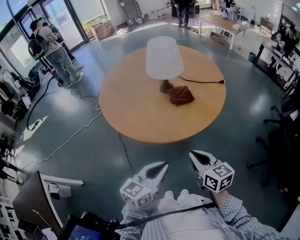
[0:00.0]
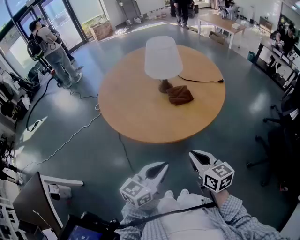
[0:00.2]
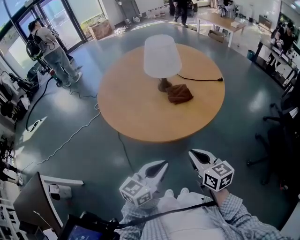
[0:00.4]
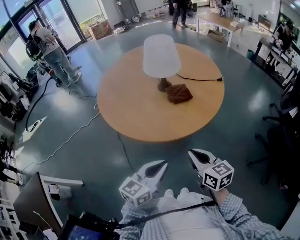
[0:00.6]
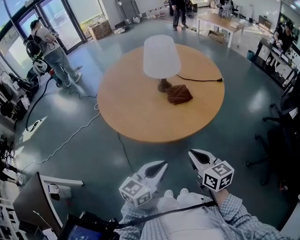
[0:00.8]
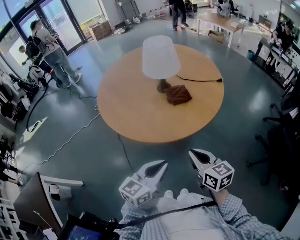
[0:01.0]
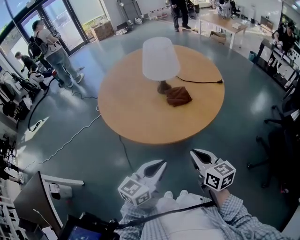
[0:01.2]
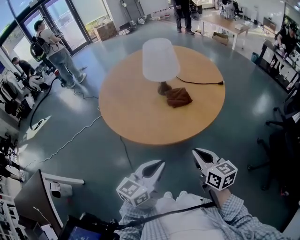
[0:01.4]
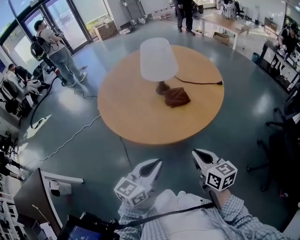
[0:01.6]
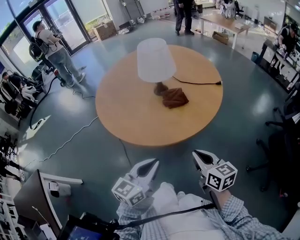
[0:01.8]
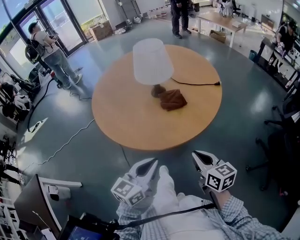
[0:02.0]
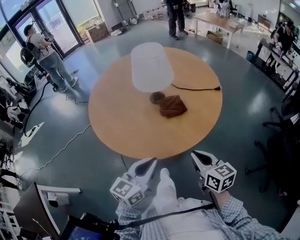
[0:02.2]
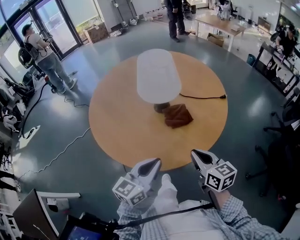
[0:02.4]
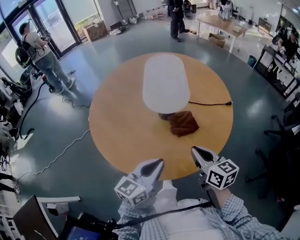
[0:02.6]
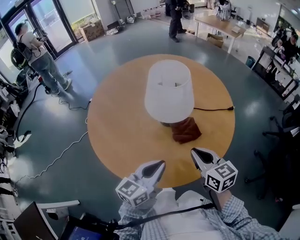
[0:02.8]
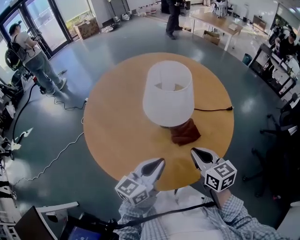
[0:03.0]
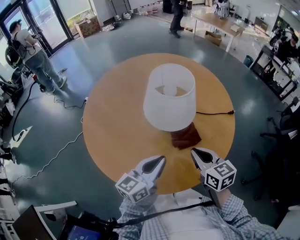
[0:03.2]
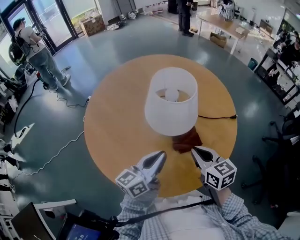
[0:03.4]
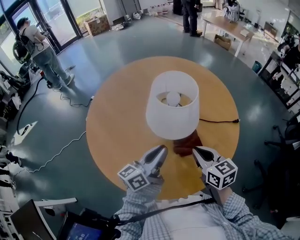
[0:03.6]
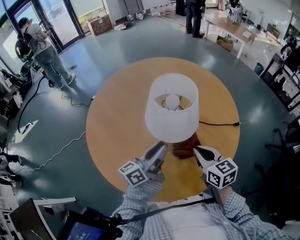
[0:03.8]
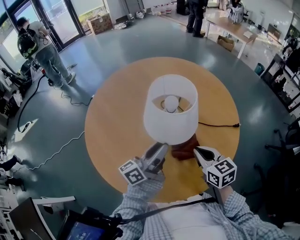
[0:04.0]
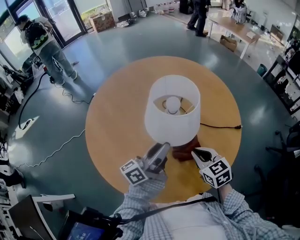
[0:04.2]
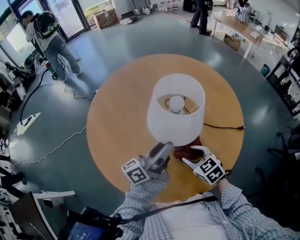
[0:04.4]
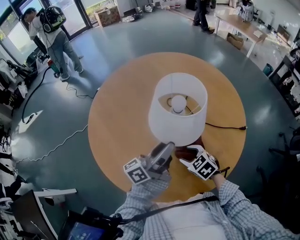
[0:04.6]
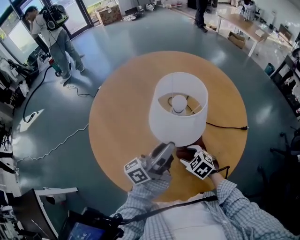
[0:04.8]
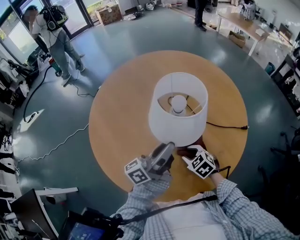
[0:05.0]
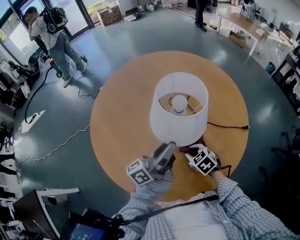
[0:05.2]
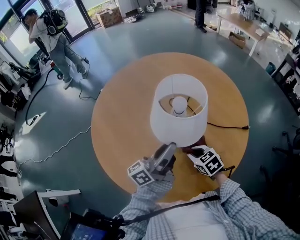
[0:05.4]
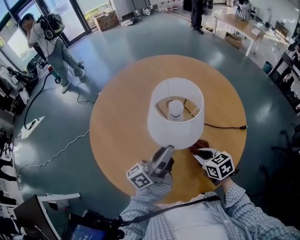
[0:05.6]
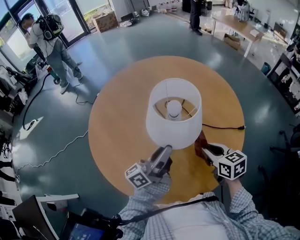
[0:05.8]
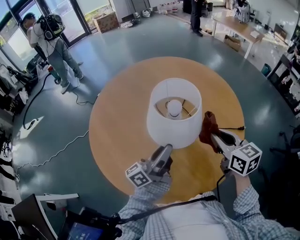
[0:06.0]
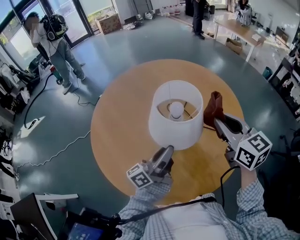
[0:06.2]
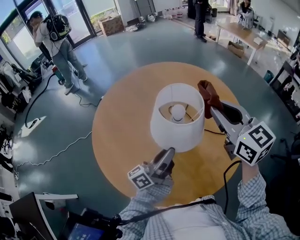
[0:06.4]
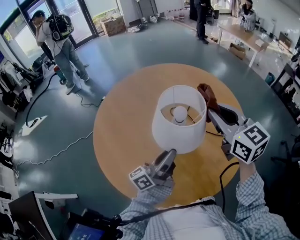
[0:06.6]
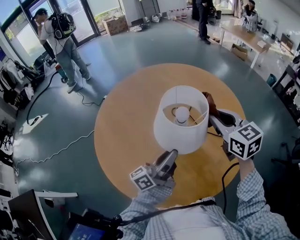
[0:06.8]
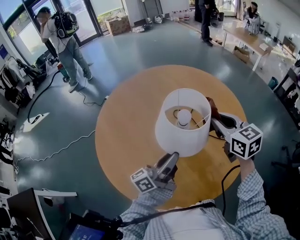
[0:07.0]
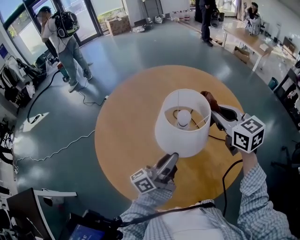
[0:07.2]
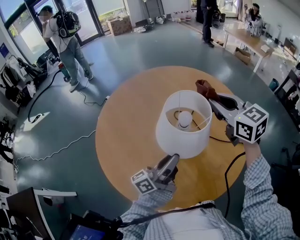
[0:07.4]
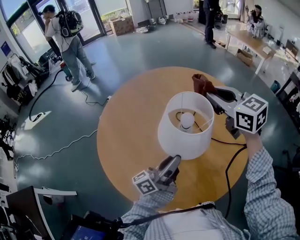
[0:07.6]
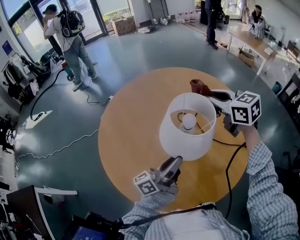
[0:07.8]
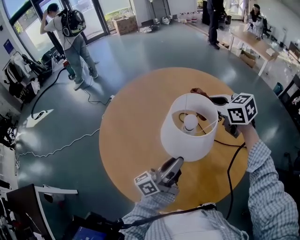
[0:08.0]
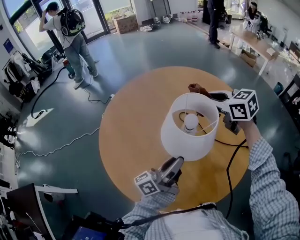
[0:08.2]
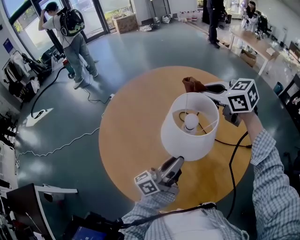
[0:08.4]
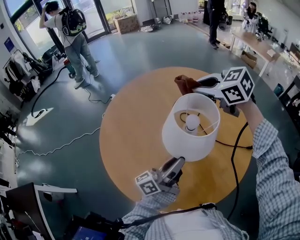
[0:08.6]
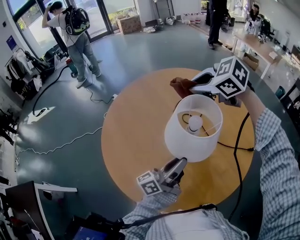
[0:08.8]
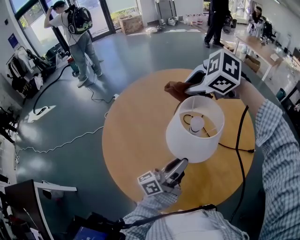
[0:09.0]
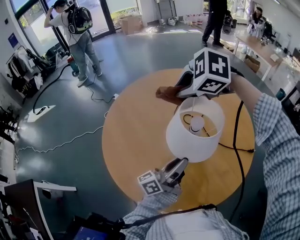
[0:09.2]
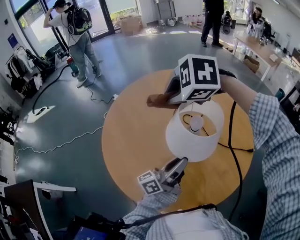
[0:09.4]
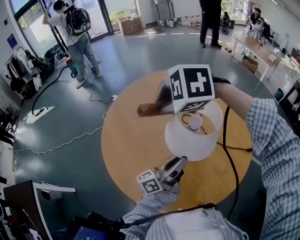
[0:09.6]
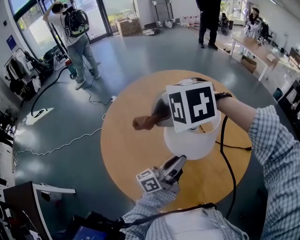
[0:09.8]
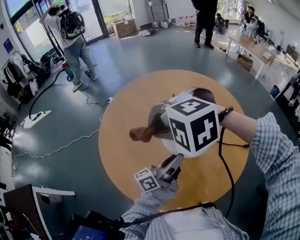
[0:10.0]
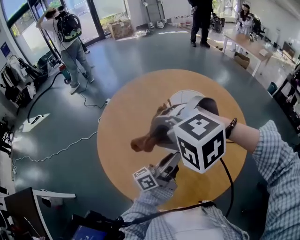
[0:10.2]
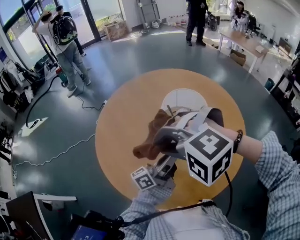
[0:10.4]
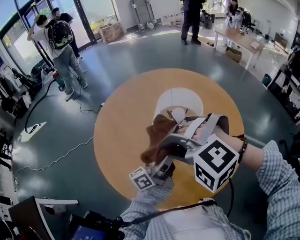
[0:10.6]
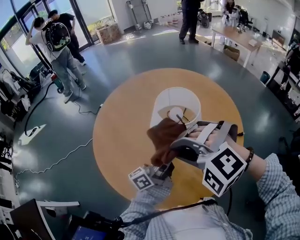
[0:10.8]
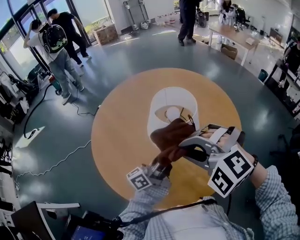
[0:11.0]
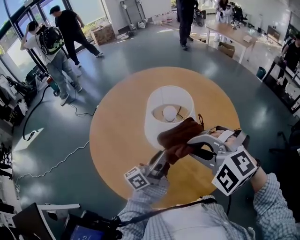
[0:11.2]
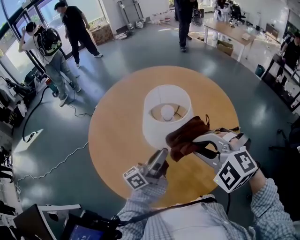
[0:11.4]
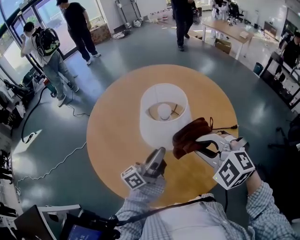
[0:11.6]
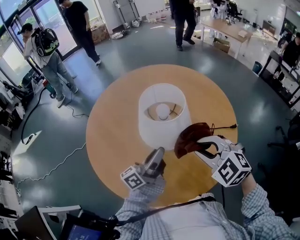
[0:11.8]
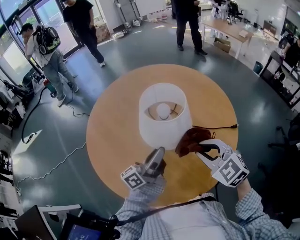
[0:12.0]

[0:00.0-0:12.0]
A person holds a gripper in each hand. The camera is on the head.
0:00.0 to 0:01.6: The right gripper travels to the right by some 5 cm.
0:01.6 to 0:03.0: Both grippers travel together forward, about 20 cm.
0:03.0 to 0:04.4: The right gripper is displaced downward and forward by roughly 10 cm, changes its angle by about 40 degrees, and opens up. The left gripper moves forward, some 15 cm, changes its angle by approximately 40 degrees, and opens up.
0:04.4 to 0:06.0: The right gripper goes about 20 cm upward and to the right, turns by some 30 degrees, and closes its fingers.
0:06.0 to 0:07.6: The right gripper moves up and down over approximately 15 cm, changing direction 2 times, and swivels some 30 degrees.
0:07.6 to 0:09.0: The right gripper shifts approximately 10 cm to the left, and tilts its fingers some 40 degrees downward.
0:09.0 to 0:10.4: The right gripper is displaced backward and to the left by roughly 25 cm, and twists approximately 40 degrees counterclockwise, seen from behind.
0:10.4 to 0:12.0: The right gripper goes approximately 20 cm to the right and downward, and rolls clockwise, seen from behind, by roughly 60 degrees.

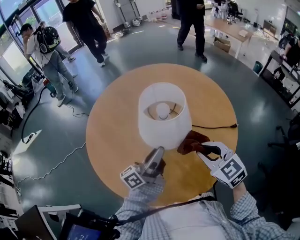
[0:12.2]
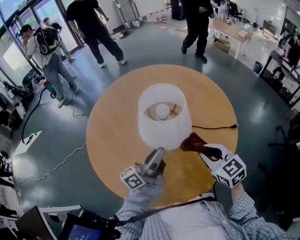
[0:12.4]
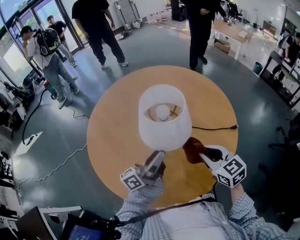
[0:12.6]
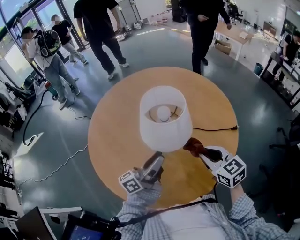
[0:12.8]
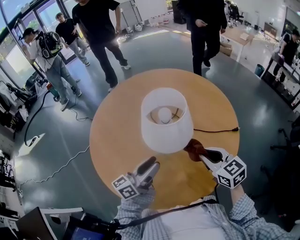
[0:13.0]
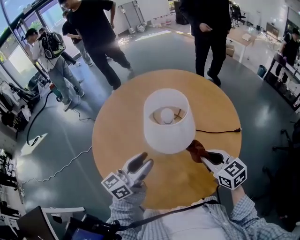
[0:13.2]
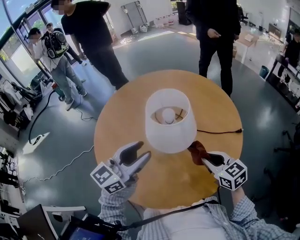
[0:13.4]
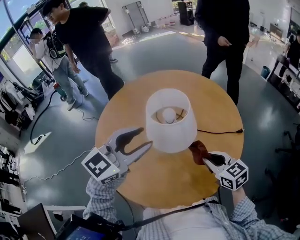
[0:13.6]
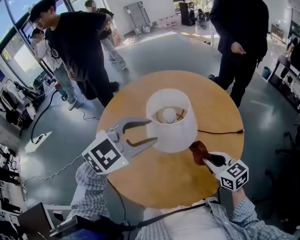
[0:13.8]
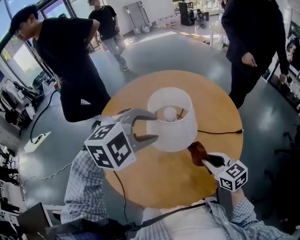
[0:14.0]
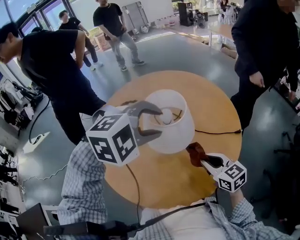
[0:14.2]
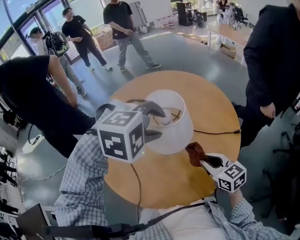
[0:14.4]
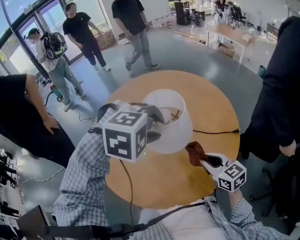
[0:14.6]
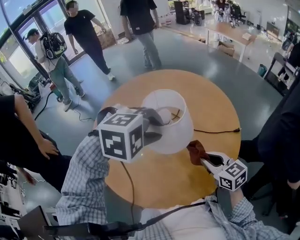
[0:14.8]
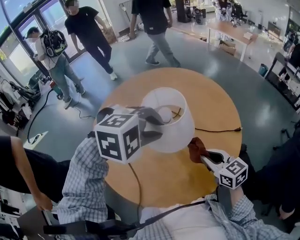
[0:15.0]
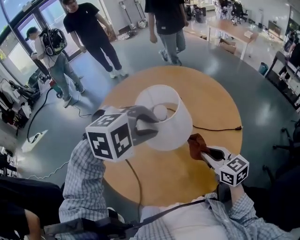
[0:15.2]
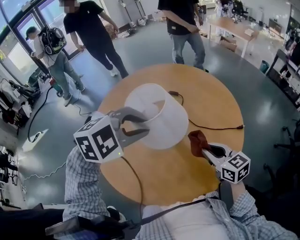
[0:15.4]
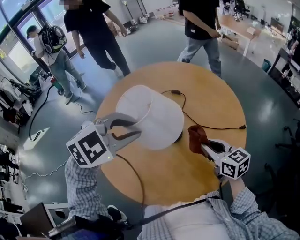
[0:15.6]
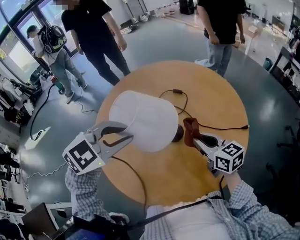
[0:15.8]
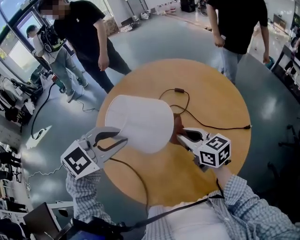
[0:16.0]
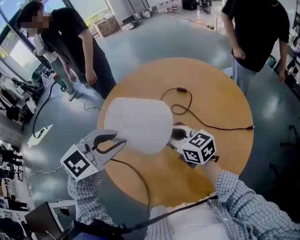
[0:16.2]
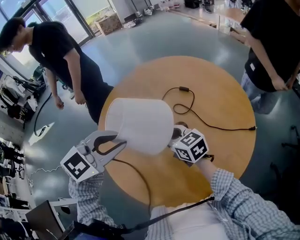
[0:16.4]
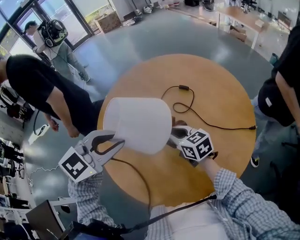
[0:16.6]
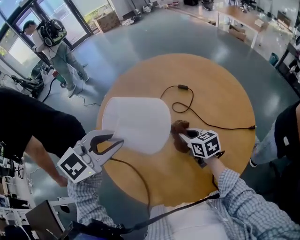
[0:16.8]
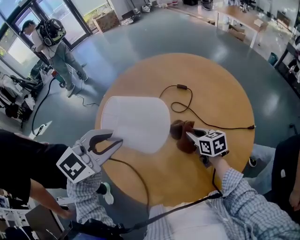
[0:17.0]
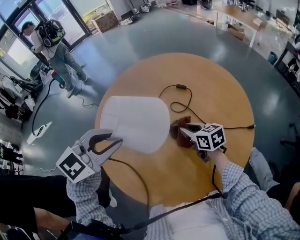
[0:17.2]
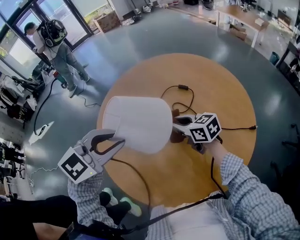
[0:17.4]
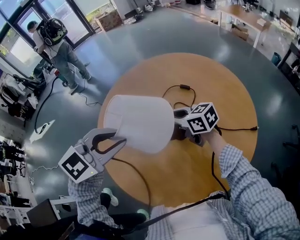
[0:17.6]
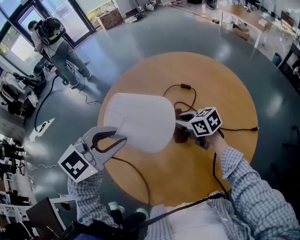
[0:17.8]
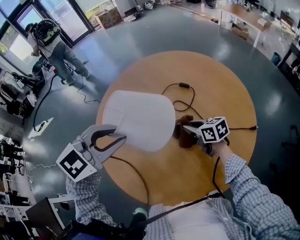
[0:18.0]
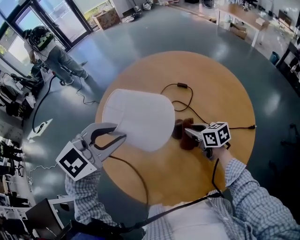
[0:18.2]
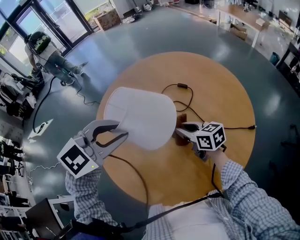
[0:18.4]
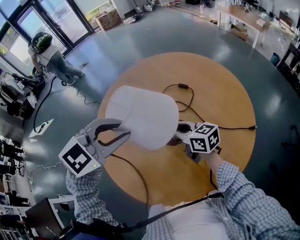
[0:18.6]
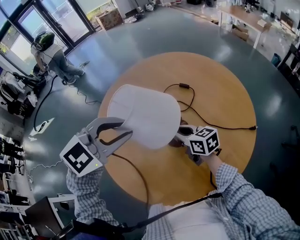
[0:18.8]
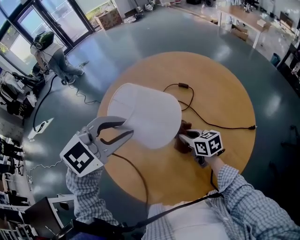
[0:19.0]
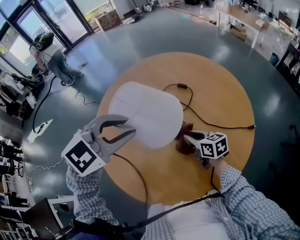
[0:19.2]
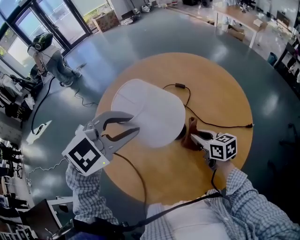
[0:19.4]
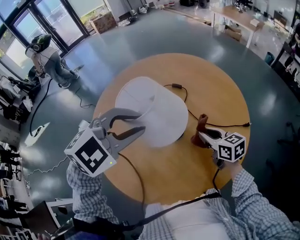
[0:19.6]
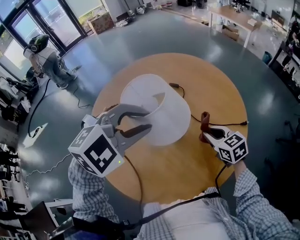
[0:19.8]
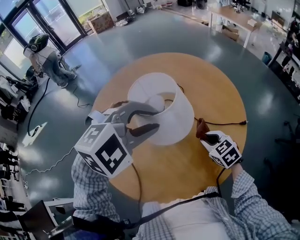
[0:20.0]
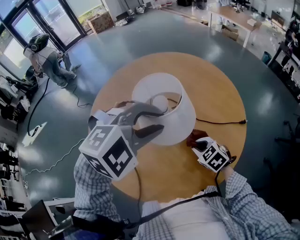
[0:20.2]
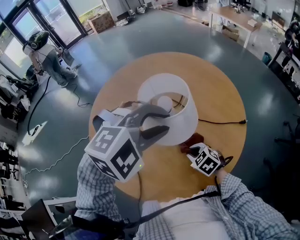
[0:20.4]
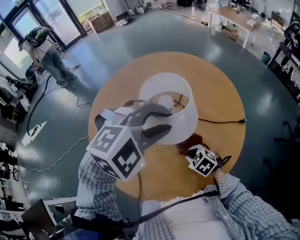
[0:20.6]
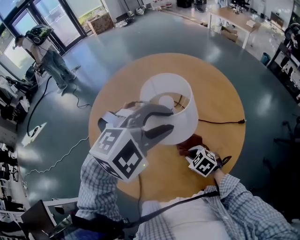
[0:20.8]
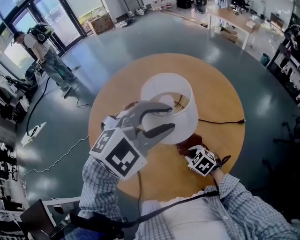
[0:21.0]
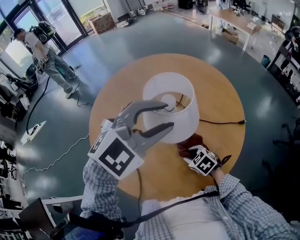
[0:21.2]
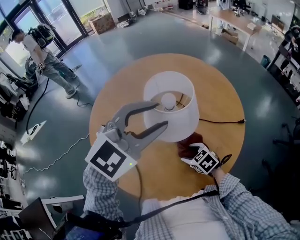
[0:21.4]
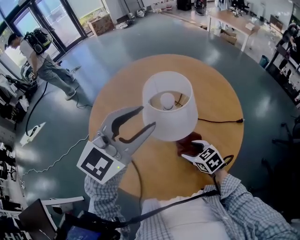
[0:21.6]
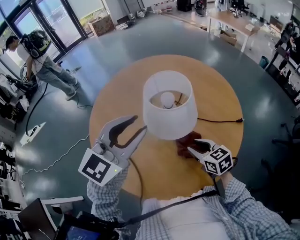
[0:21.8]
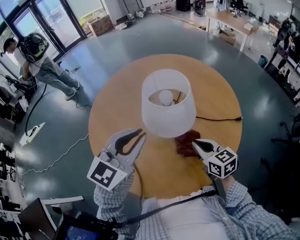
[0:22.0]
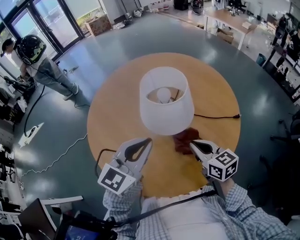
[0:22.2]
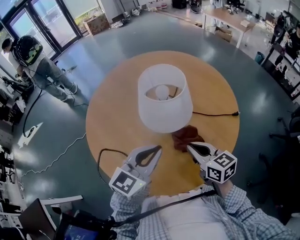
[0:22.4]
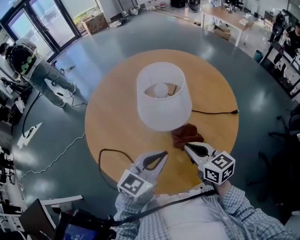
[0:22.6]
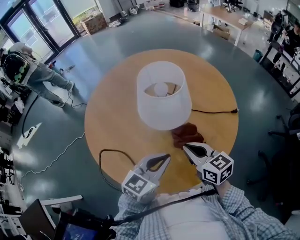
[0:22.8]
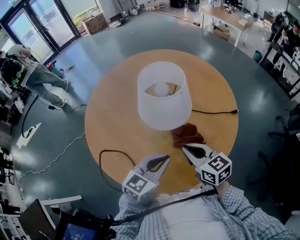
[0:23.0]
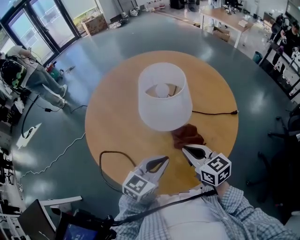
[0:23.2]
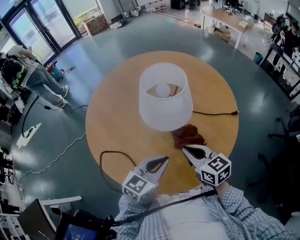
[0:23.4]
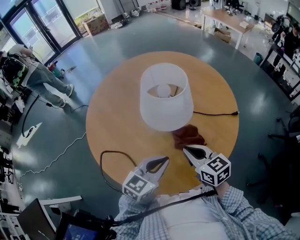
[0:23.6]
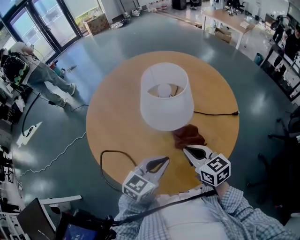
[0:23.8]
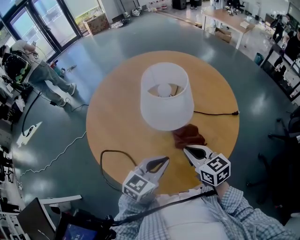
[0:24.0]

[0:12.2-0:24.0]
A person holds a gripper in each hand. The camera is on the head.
0:12.2 to 0:13.6: The right gripper rotates roughly 20 degrees. The left gripper heads upward, covering about 15 cm, and rotates around the line of its fingers by some 60 degrees, clockwise from behind.
0:13.6 to 0:15.2: The left gripper ends up roughly 5 cm from where it was, angles its fingers downward, by about 50 degrees, and closes its fingers.
0:15.2 to 0:16.6: The right gripper shifts about 20 cm to the left and forward, while the left gripper is displaced to the left by roughly 15 cm, and swivels approximately 40 degrees.
0:16.6 to 0:18.2: The right gripper moves up and down over roughly 10 cm, changing direction 2 times.
0:18.2 to 0:19.6: The two grippers go roughly 10 cm to the right. The left gripper swivels about 20 degrees.
0:19.6 to 0:21.0: The right gripper travels downward and backward by some 15 cm, and angles its fingers downward, by approximately 30 degrees, while the left gripper is displaced to the right by roughly 10 cm.
0:21.0 to 0:22.6: The left gripper goes about 20 cm downward and backward, twists about 50 degrees counterclockwise, seen from behind, and closes up. Meanwhile the right gripper shifts some 15 cm upward, points its fingers about 40 degrees further upward, and opens and closes again.
0:22.6 to 0:24.0: The grippers stay close to where they were, moving slightly.
